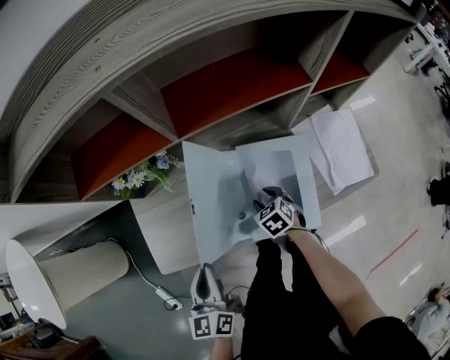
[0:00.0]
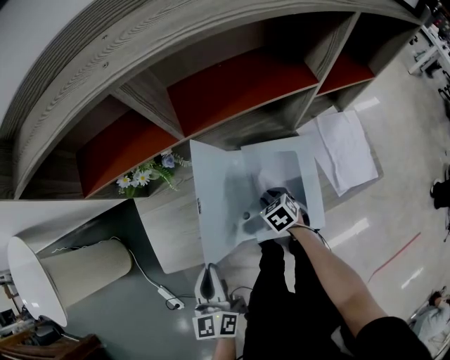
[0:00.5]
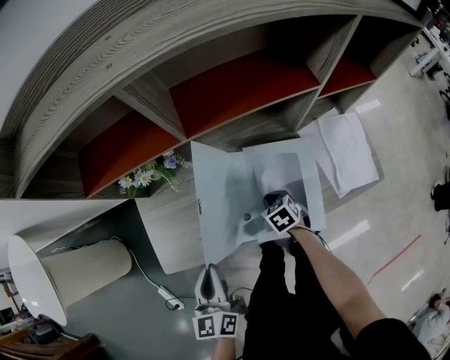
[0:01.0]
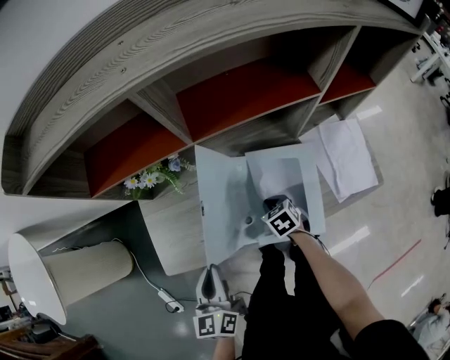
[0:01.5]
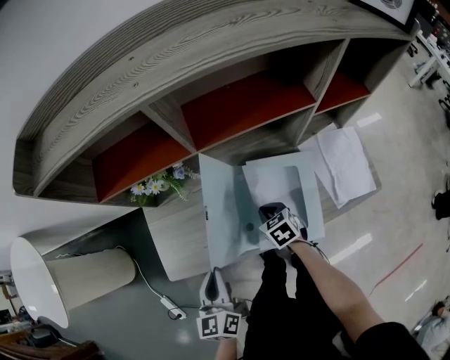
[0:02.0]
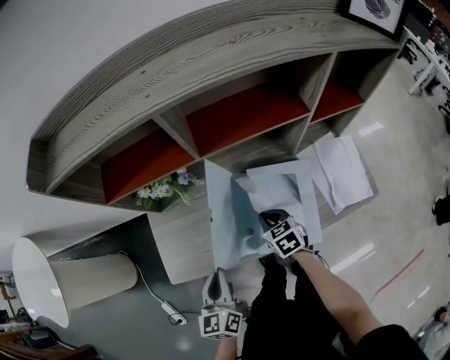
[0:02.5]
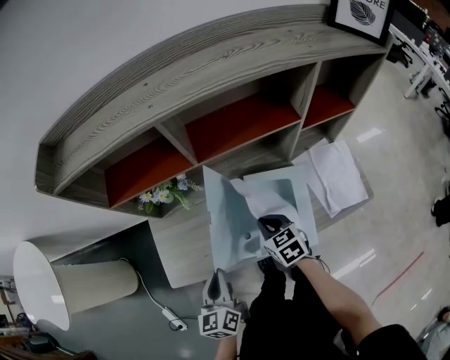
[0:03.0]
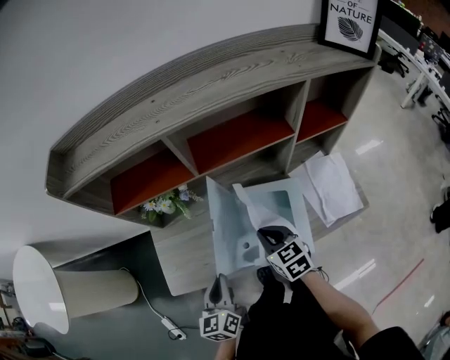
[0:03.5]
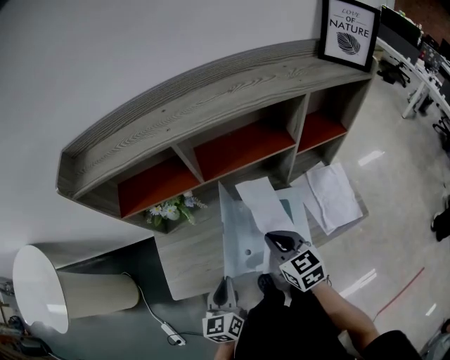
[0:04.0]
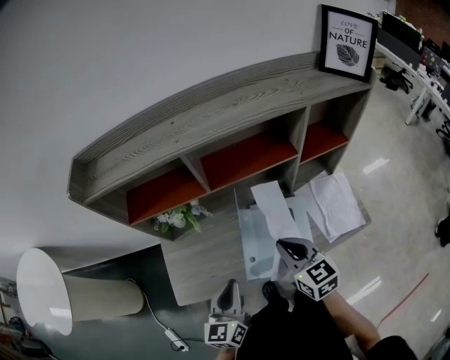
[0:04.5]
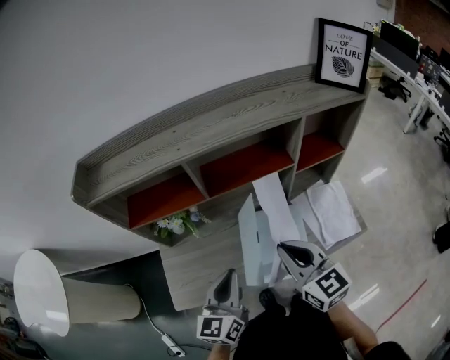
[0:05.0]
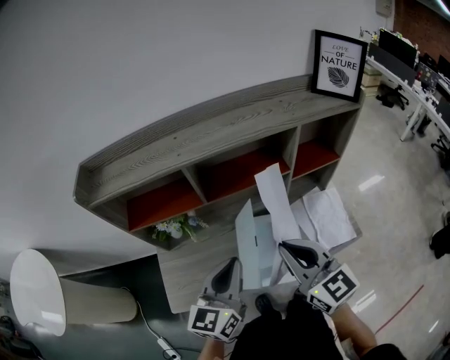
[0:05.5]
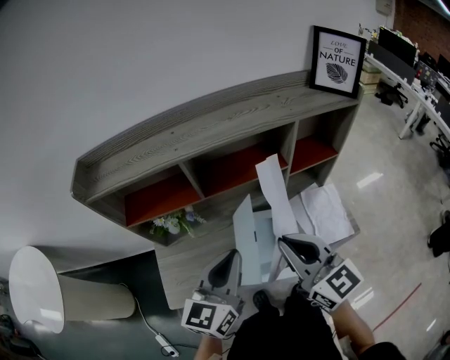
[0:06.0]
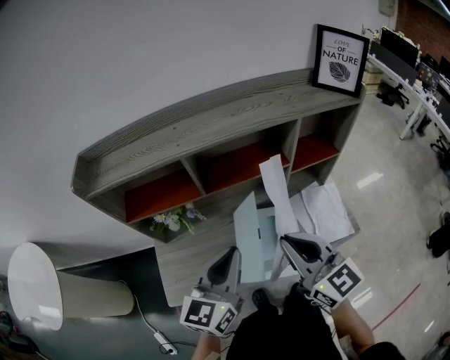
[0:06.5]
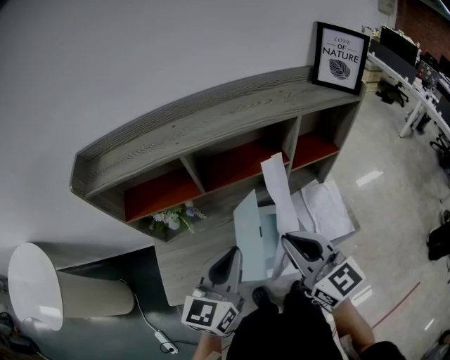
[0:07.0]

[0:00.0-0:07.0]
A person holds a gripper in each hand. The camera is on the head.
0:00.0 to 0:02.0: The right gripper closes.
0:02.0 to 0:03.5: The right gripper heads upward, covering roughly 15 cm.
0:03.5 to 0:05.0: The left gripper moves upward and to the right, about 15 cm, and swivels approximately 20 degrees. The right gripper shifts about 20 cm upward, and changes its angle by about 20 degrees.
0:05.0 to 0:07.0: The grippers both shift upward by roughly 5 cm.

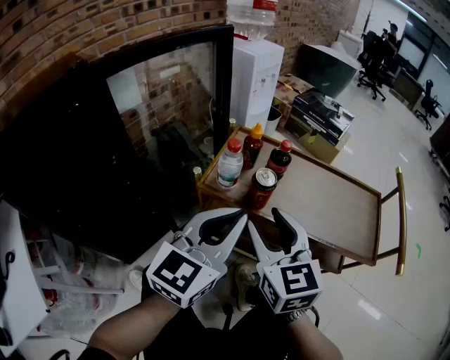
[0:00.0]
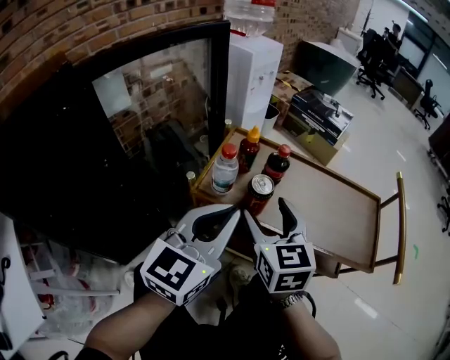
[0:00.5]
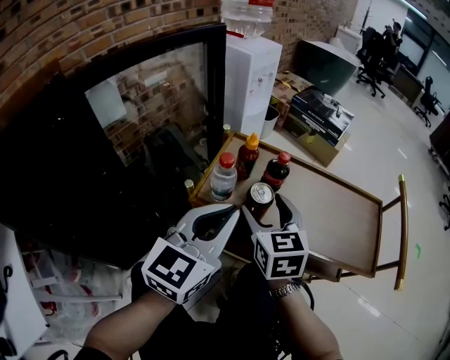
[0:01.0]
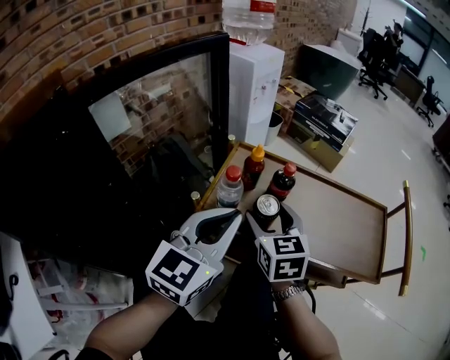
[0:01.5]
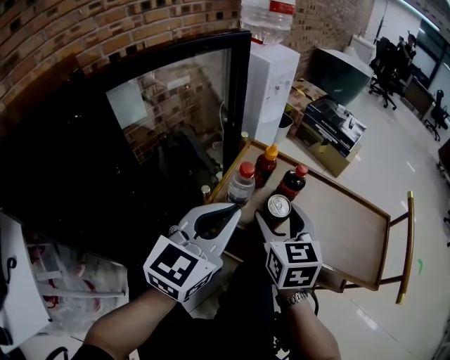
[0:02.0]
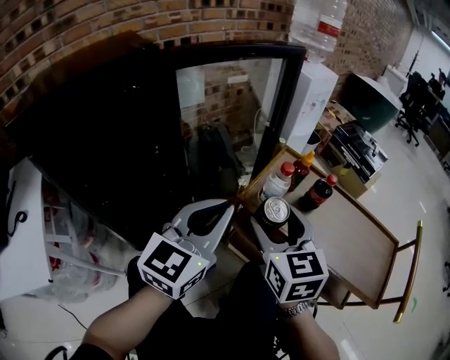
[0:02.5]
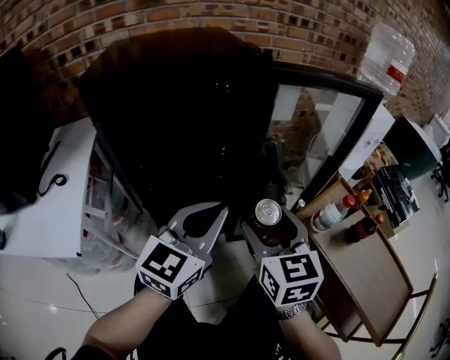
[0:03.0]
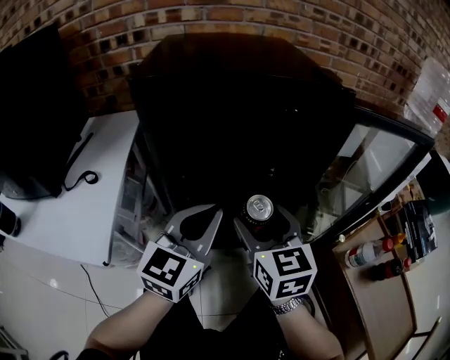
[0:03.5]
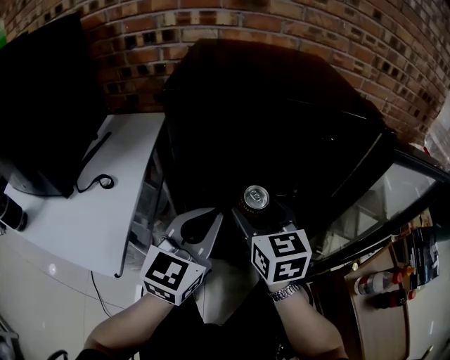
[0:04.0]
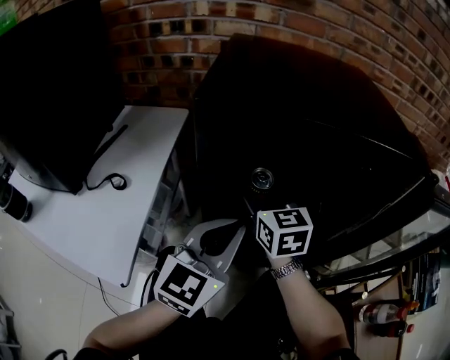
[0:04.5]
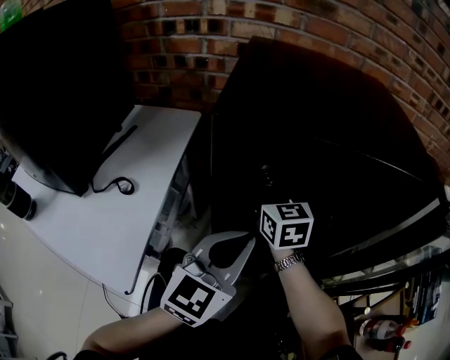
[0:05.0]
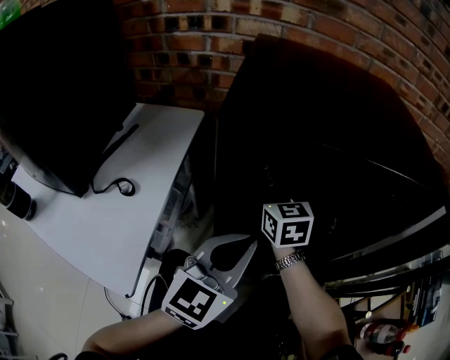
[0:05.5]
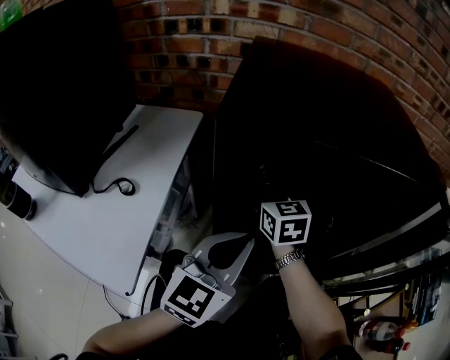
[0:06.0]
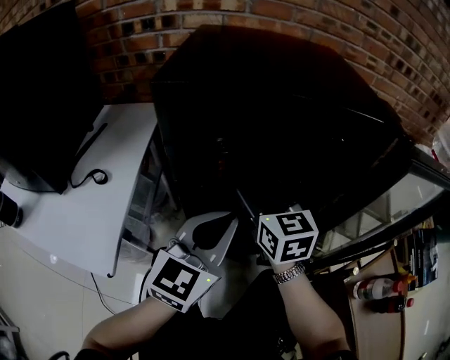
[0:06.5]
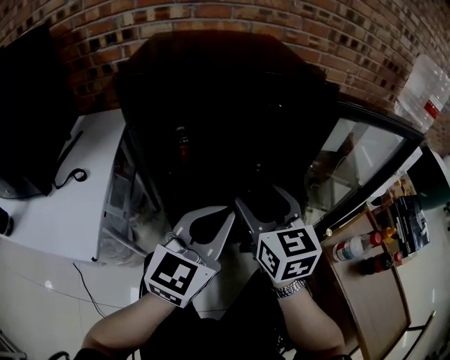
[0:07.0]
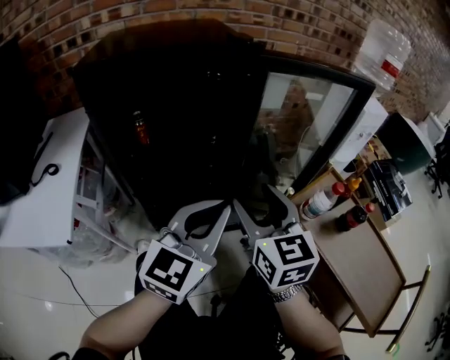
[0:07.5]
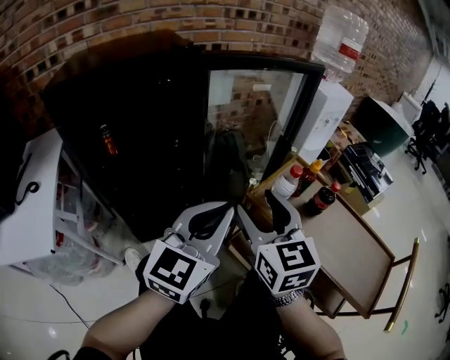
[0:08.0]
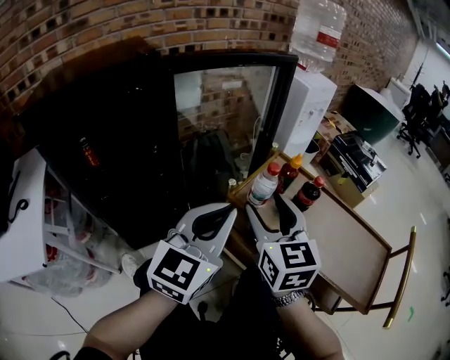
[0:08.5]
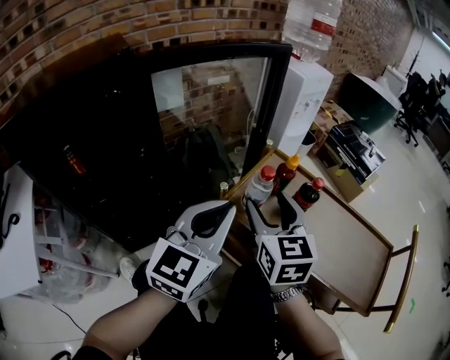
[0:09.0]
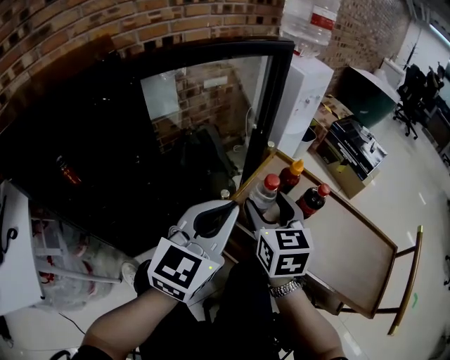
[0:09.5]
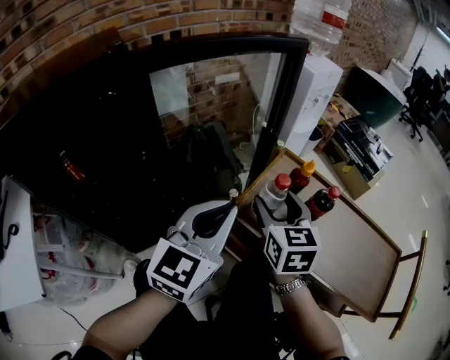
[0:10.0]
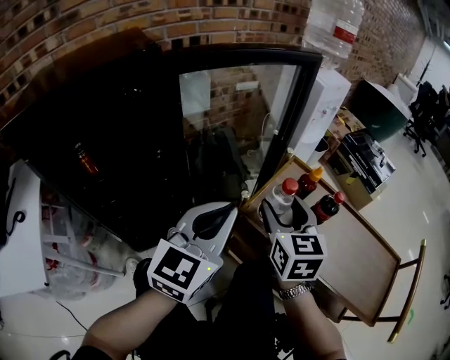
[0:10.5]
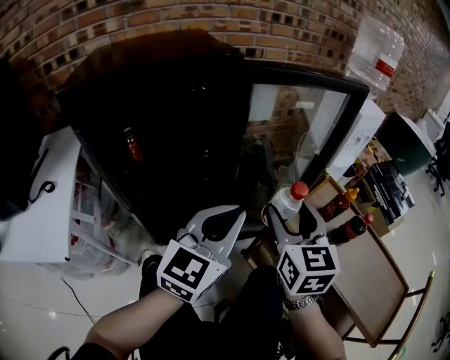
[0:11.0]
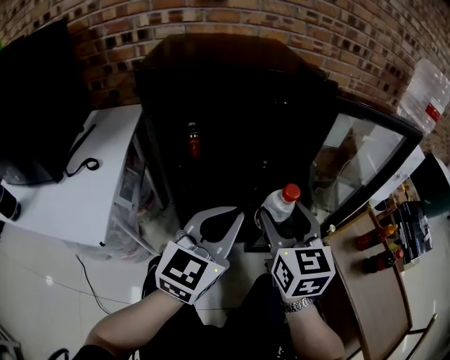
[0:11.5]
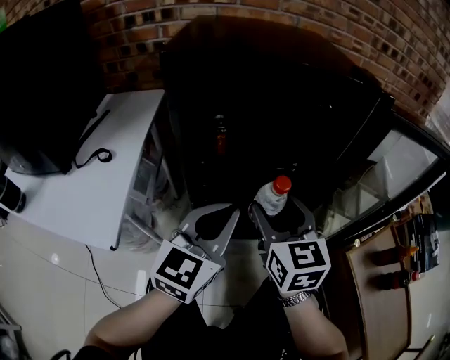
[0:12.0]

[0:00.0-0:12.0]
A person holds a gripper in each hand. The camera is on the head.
0:00.0 to 0:02.0: The left gripper heads forward, covering approximately 5 cm. Meanwhile the right gripper moves forward, roughly 10 cm.
0:02.0 to 0:04.0: Both grippers are carried roughly 50 cm. The left gripper changes its angle by approximately 50 degrees; the right gripper changes its angle by roughly 60 degrees.
0:04.0 to 0:06.0: The right gripper moves forward and to the left, about 20 cm.
0:06.0 to 0:08.0: The left gripper changes place by about 35 cm, and rotates approximately 30 degrees, while the right gripper changes place by about 50 cm, and swivels approximately 40 degrees.
0:08.0 to 0:10.0: The right gripper moves forward, to the right and downward, roughly 20 cm, and swivels some 20 degrees. The left gripper goes approximately 10 cm forward.
0:10.0 to 0:12.0: The right gripper ends up roughly 40 cm from where it was, and rotates roughly 40 degrees; the left gripper moves about 35 cm, and changes its angle by approximately 30 degrees.

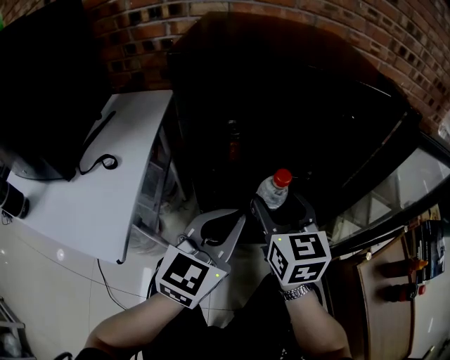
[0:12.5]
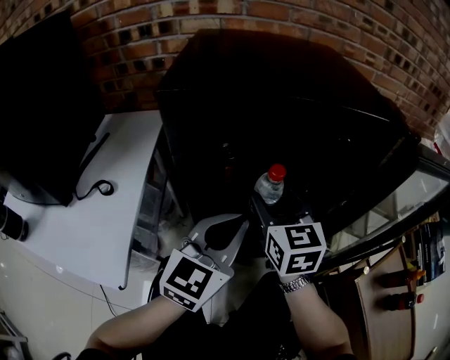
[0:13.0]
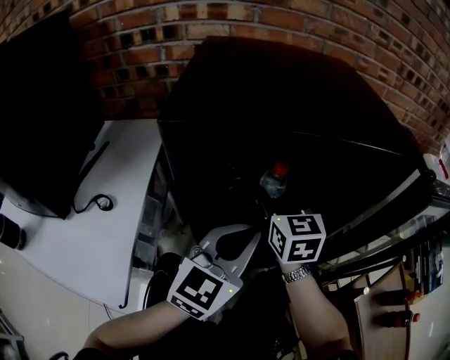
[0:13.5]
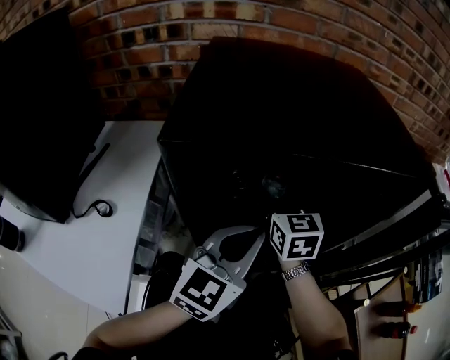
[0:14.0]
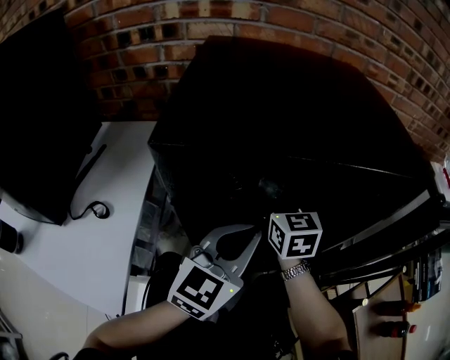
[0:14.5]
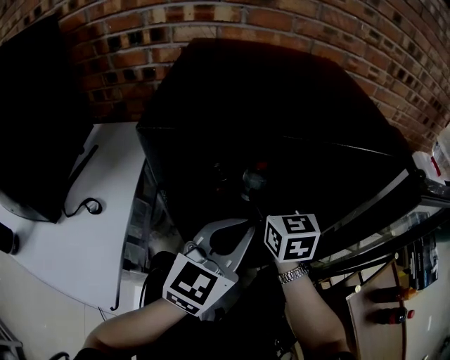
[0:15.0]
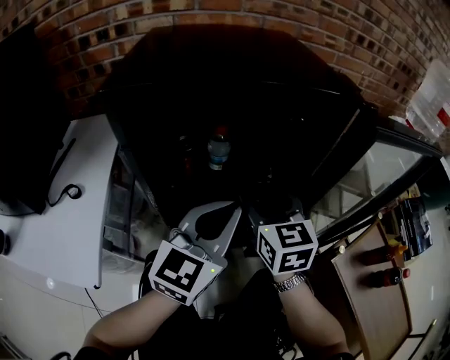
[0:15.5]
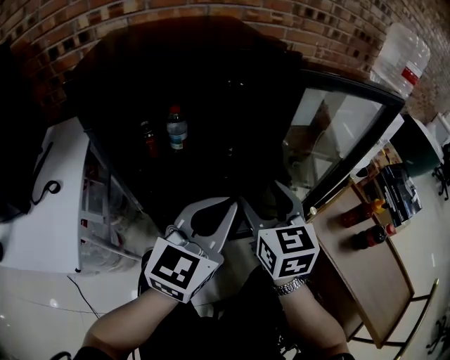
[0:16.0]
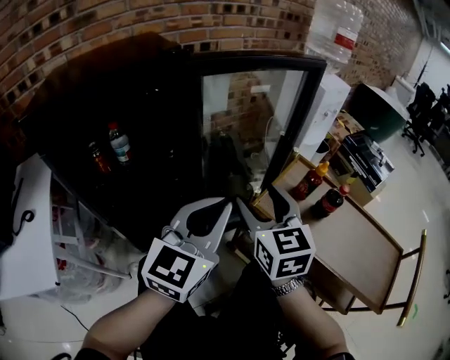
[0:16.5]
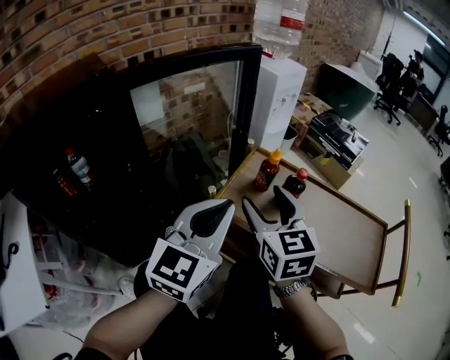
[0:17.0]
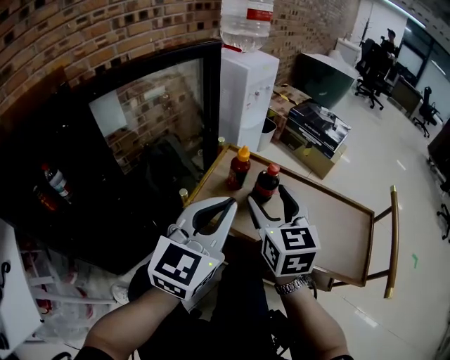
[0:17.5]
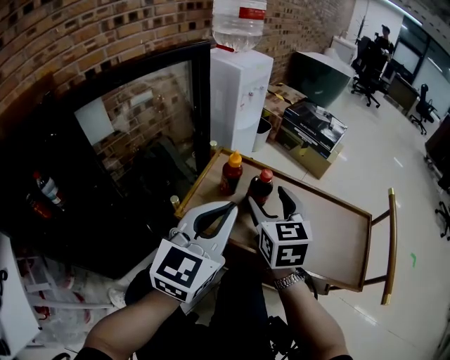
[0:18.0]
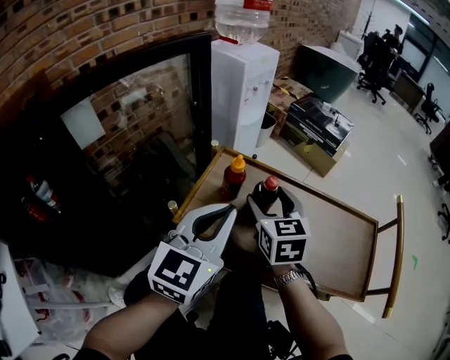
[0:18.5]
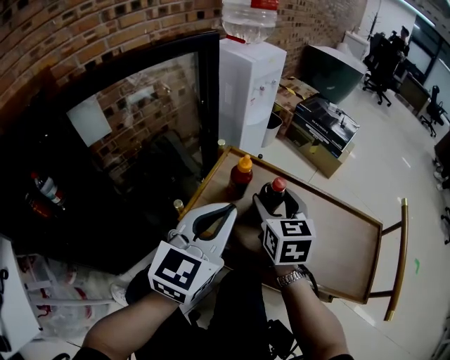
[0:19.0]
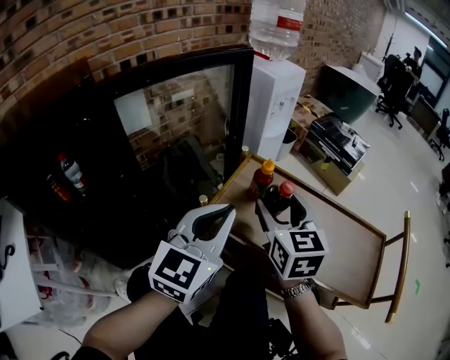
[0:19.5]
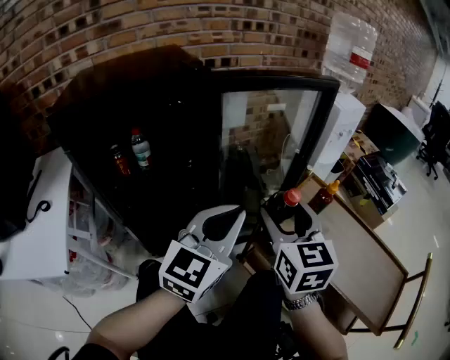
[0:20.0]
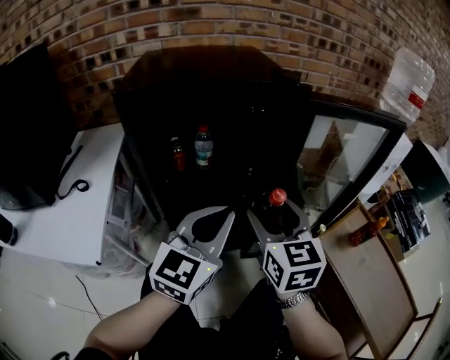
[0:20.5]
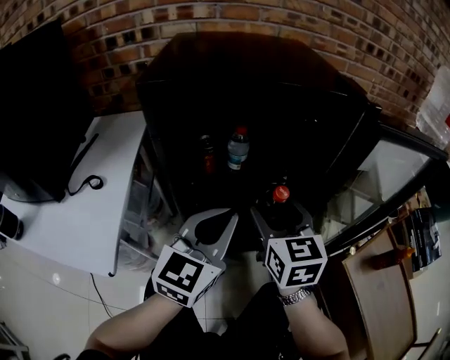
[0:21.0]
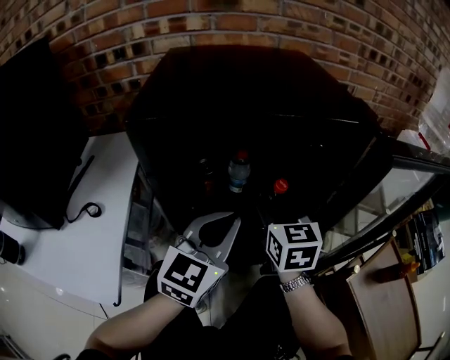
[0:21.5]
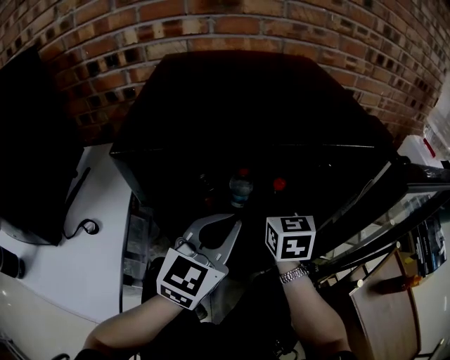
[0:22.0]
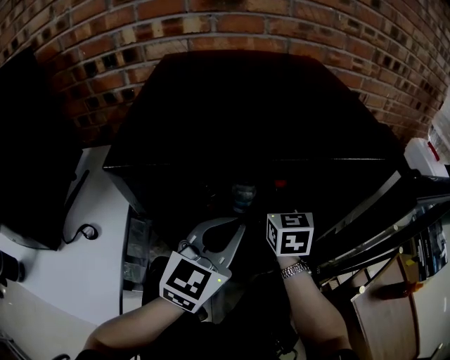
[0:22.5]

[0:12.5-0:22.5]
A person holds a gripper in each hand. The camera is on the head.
0:12.5 to 0:14.5: The left gripper goes roughly 10 cm forward. The right gripper is displaced forward by about 20 cm.
0:14.5 to 0:16.5: Both grippers move to the right and backward, some 40 cm. The right gripper rotates about 30 degrees, while the left gripper swivels about 20 degrees.
0:16.5 to 0:18.5: Both grippers travel together to the right and forward, some 25 cm. The right gripper changes its angle by about 30 degrees. The left gripper rotates some 20 degrees.
0:18.5 to 0:20.5: The left gripper shifts by approximately 40 cm, and turns by approximately 40 degrees, while the right gripper moves approximately 40 cm, and turns by approximately 40 degrees.
0:20.5 to 0:22.5: The two grippers go about 25 cm forward and to the left.
